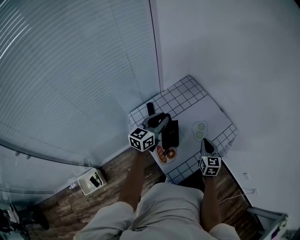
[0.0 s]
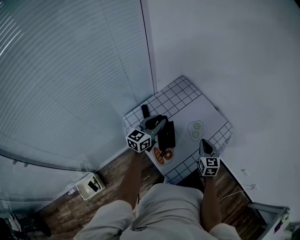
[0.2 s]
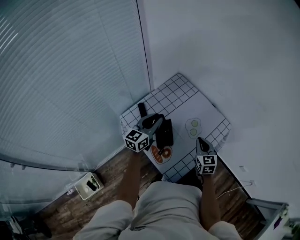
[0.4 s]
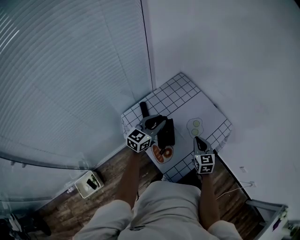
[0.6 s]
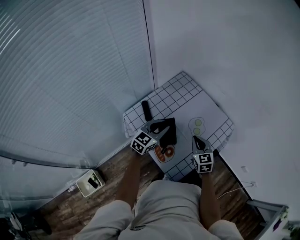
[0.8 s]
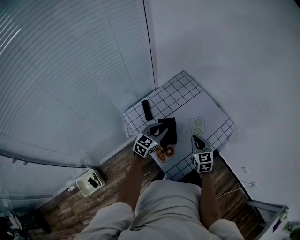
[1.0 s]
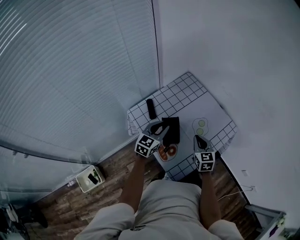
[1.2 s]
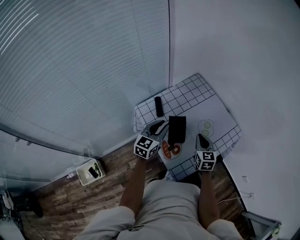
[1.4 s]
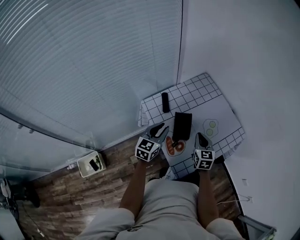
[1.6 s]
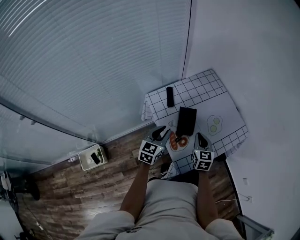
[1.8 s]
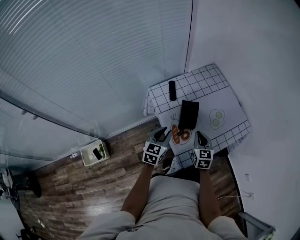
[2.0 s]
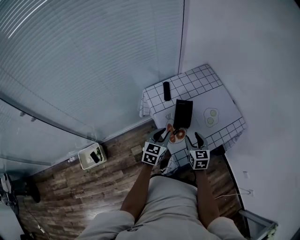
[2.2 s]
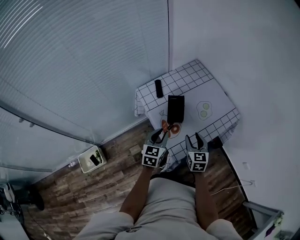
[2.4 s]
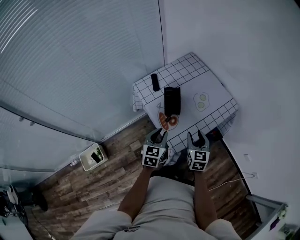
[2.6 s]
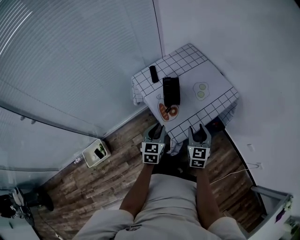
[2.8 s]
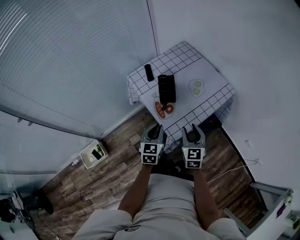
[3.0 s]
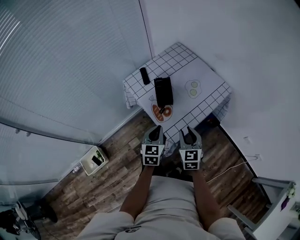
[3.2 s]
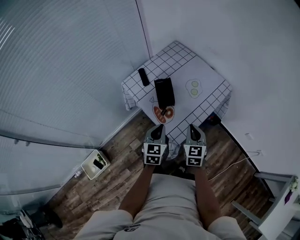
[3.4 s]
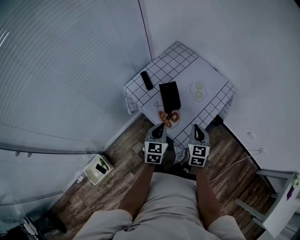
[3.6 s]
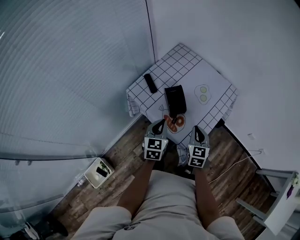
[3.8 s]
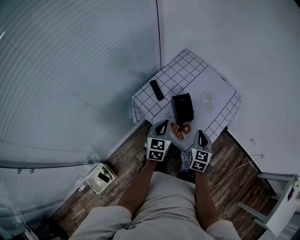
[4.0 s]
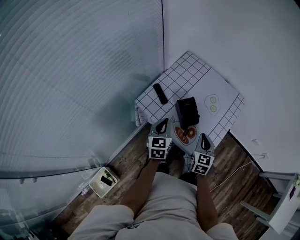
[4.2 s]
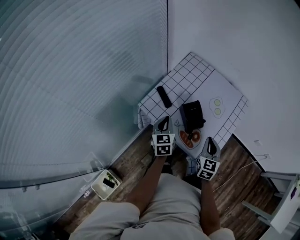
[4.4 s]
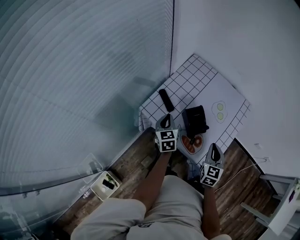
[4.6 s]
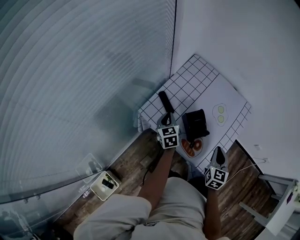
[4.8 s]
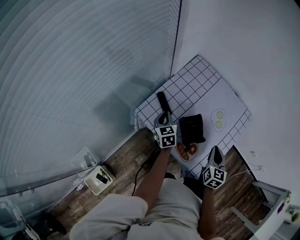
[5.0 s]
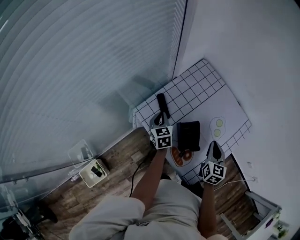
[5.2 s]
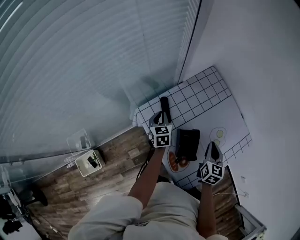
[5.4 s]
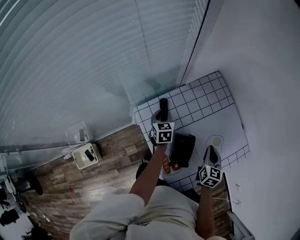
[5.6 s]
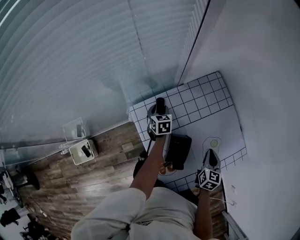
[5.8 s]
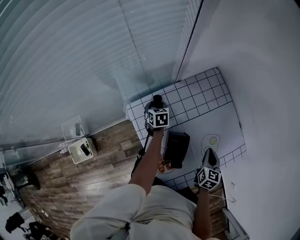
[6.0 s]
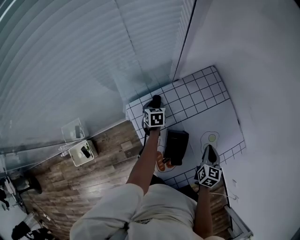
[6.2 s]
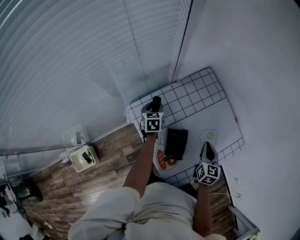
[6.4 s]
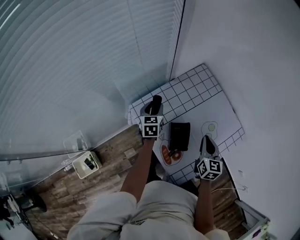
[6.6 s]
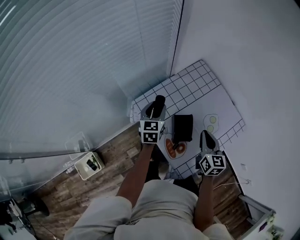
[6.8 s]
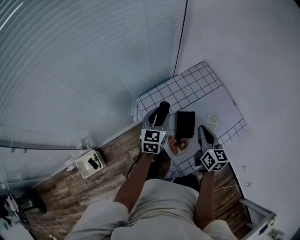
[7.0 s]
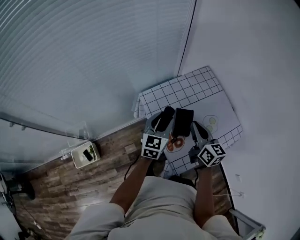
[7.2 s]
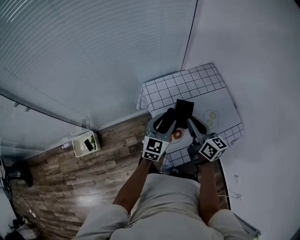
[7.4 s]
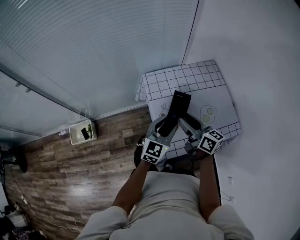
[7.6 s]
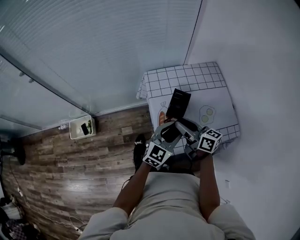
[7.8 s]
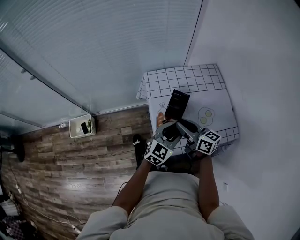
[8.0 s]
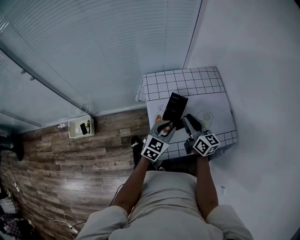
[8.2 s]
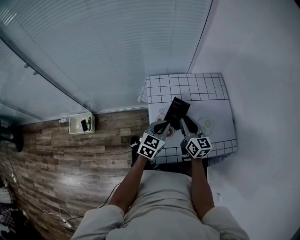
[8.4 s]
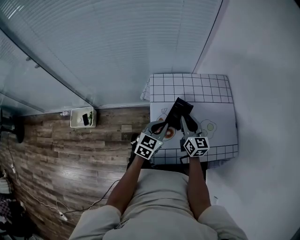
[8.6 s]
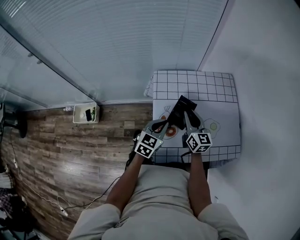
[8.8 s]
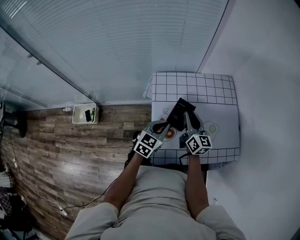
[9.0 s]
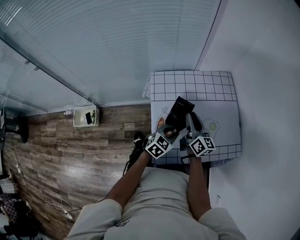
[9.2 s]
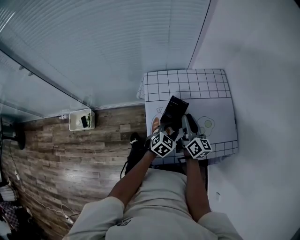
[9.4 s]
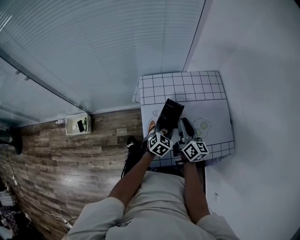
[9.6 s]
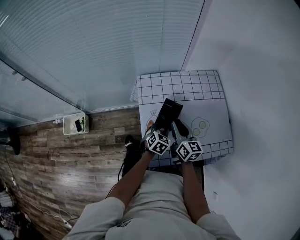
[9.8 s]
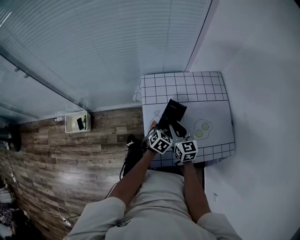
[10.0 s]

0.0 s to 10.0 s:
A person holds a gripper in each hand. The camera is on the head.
0.0 to 1.4 s: The right gripper goes approximately 5 cm to the left; the left gripper moves backward and downward, roughly 10 cm.
1.4 to 2.8 s: The grippers both shift backward by about 20 cm. The right gripper opens its fingers; the left gripper changes its angle by about 20 degrees.
2.8 to 4.2 s: The right gripper goes roughly 15 cm to the left and forward, swivels some 30 degrees, and closes up. Meanwhile the left gripper travels forward and to the left by approximately 25 cm, and closes its fingers.
4.2 to 5.8 s: The right gripper ends up about 25 cm from where it was, and rotates some 20 degrees; the left gripper ends up about 30 cm from where it was, swivels some 40 degrees, and opens up.
5.8 to 7.2 s: The left gripper is displaced backward and upward by roughly 35 cm, and tilts its fingers approximately 30 degrees upward. Meanwhile the right gripper shifts roughly 25 cm upward, to the left and backward, and swivels approximately 40 degrees.
7.2 to 8.6 s: The left gripper goes some 15 cm backward, downward and to the right, and closes up. The right gripper is displaced downward by approximately 10 cm, goes backward and returns, approximately 10 cm each way, swivels approximately 20 degrees, and opens up.
8.6 to 10.0 s: The right gripper moves downward, some 5 cm, while the left gripper shifts about 15 cm downward and to the right, rotates some 20 degrees, and opens its fingers.

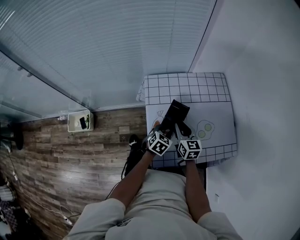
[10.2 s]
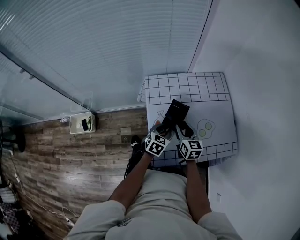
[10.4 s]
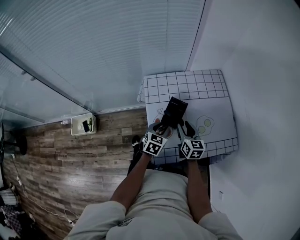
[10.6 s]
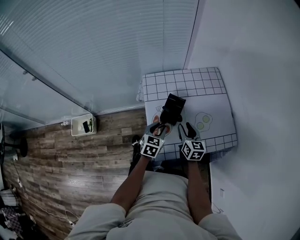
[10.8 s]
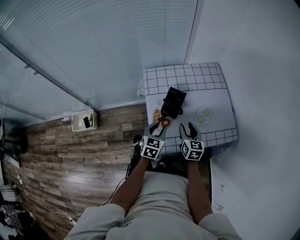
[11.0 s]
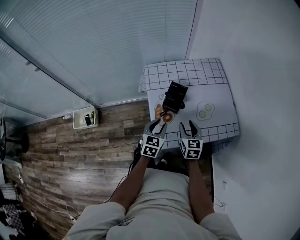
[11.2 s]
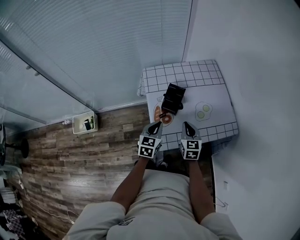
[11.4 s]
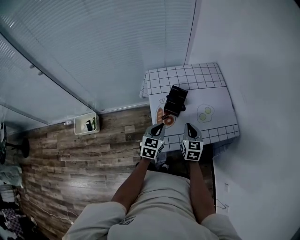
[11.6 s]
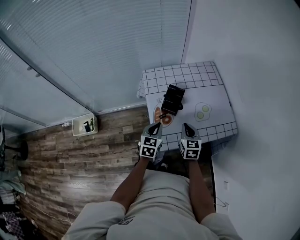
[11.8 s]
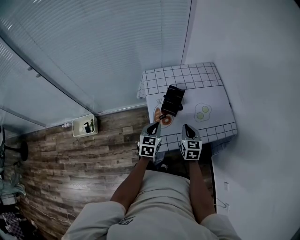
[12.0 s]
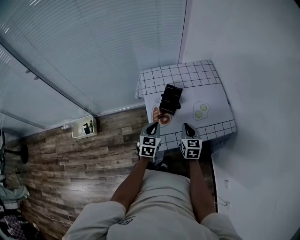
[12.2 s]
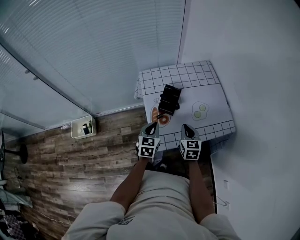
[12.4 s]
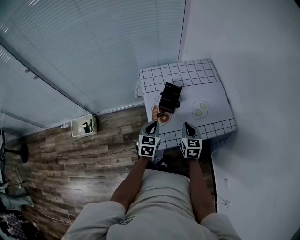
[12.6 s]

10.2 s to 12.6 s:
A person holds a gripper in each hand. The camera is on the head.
10.2 to 11.4 s: The right gripper moves backward and to the right, approximately 15 cm, and closes its fingers, while the left gripper is displaced backward and upward by some 15 cm, swivels about 20 degrees, and closes its fingers.
11.4 to 12.6 s: The grippers move only a little.

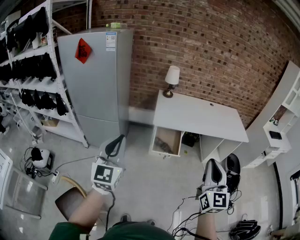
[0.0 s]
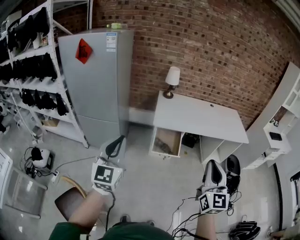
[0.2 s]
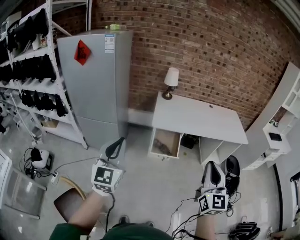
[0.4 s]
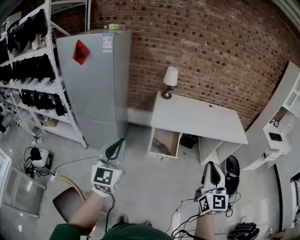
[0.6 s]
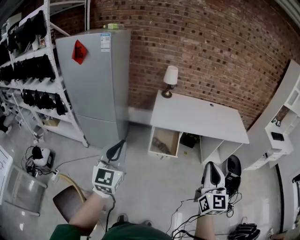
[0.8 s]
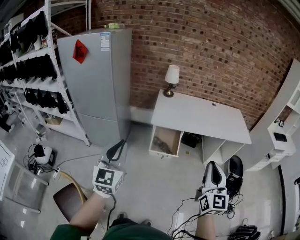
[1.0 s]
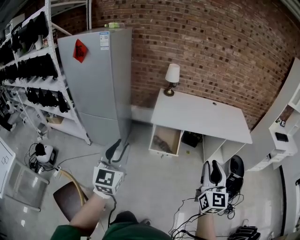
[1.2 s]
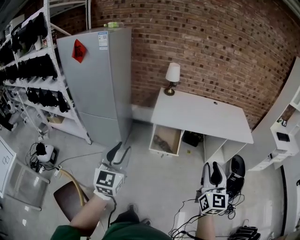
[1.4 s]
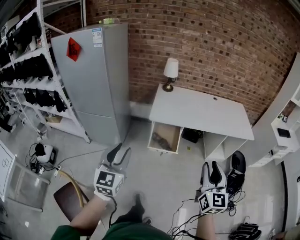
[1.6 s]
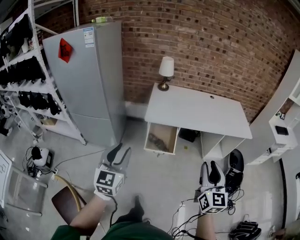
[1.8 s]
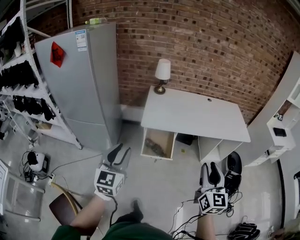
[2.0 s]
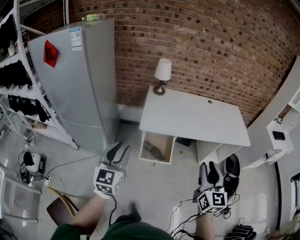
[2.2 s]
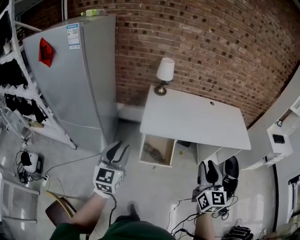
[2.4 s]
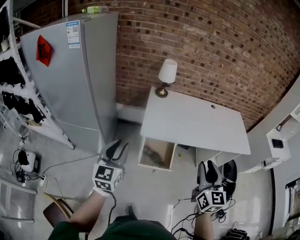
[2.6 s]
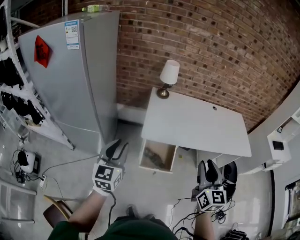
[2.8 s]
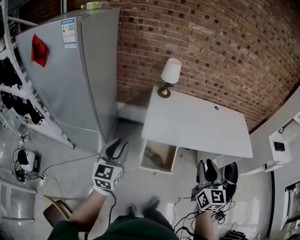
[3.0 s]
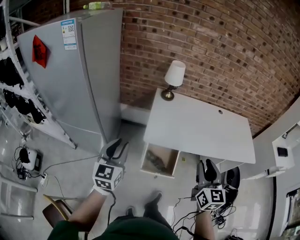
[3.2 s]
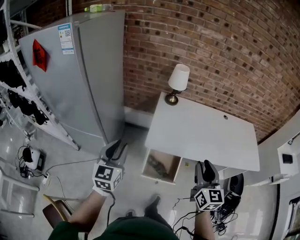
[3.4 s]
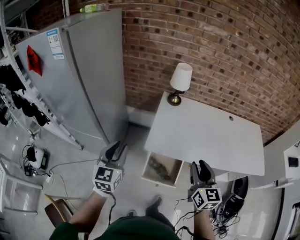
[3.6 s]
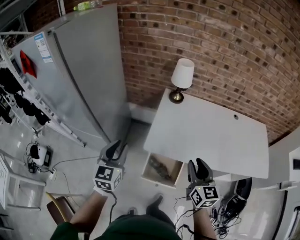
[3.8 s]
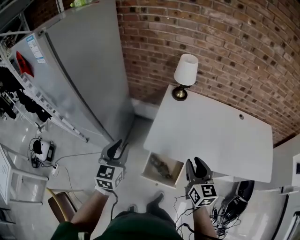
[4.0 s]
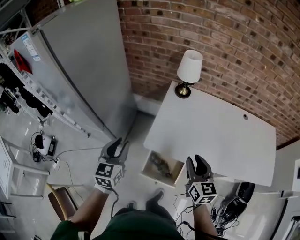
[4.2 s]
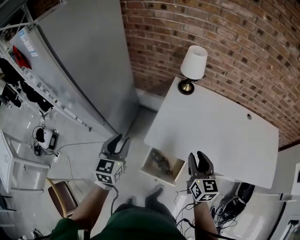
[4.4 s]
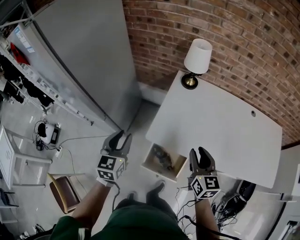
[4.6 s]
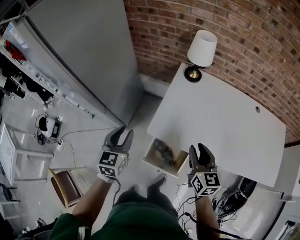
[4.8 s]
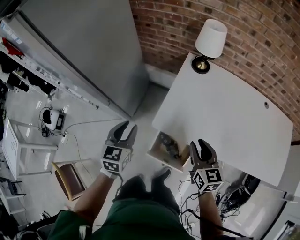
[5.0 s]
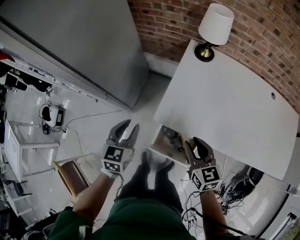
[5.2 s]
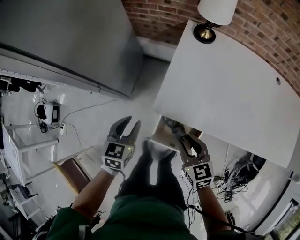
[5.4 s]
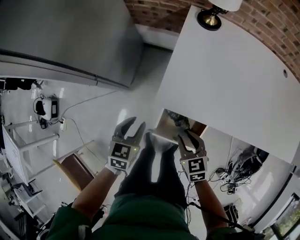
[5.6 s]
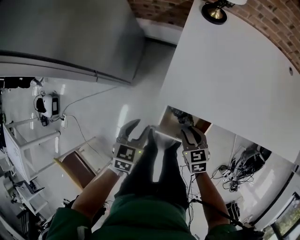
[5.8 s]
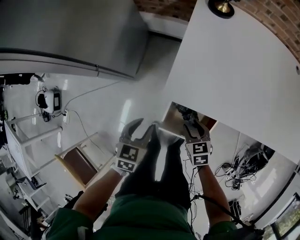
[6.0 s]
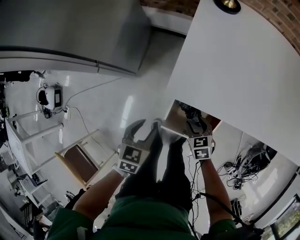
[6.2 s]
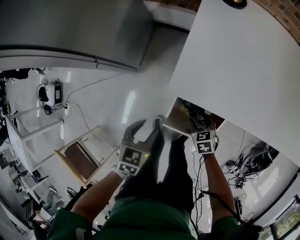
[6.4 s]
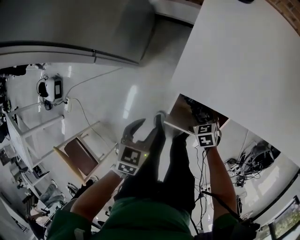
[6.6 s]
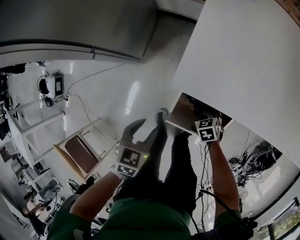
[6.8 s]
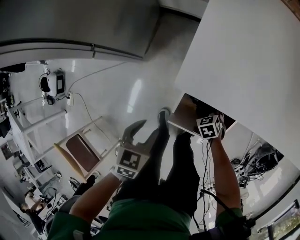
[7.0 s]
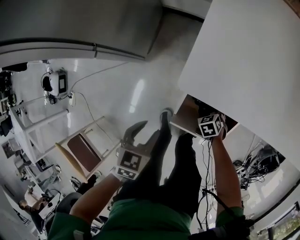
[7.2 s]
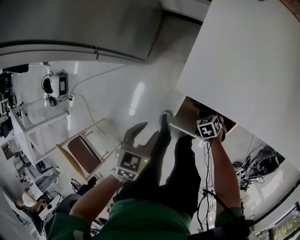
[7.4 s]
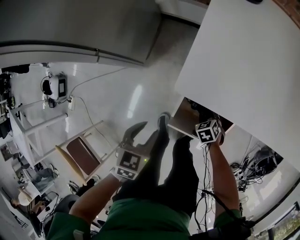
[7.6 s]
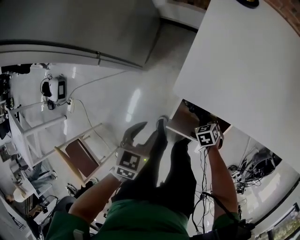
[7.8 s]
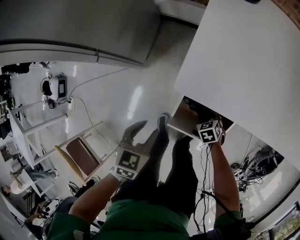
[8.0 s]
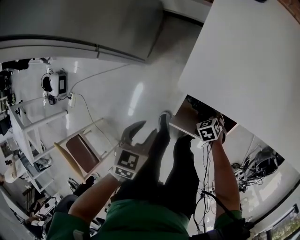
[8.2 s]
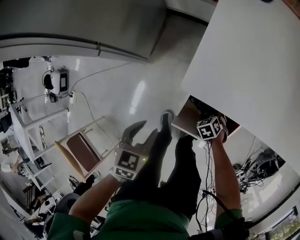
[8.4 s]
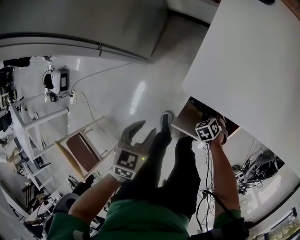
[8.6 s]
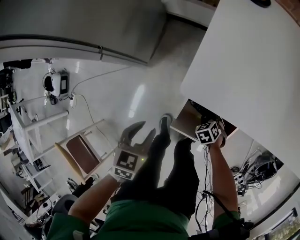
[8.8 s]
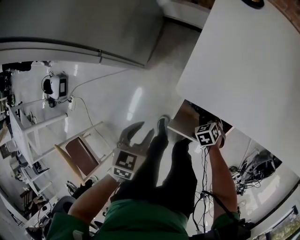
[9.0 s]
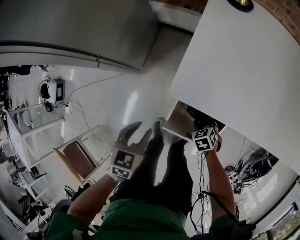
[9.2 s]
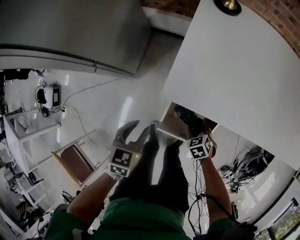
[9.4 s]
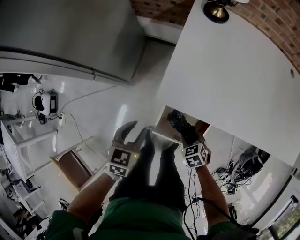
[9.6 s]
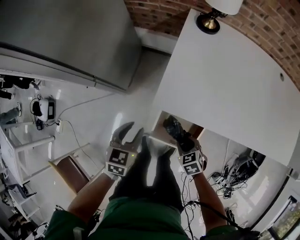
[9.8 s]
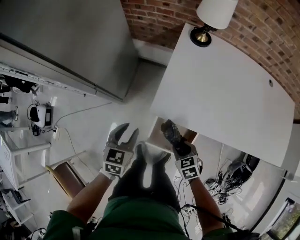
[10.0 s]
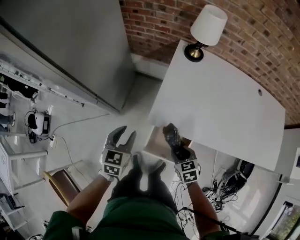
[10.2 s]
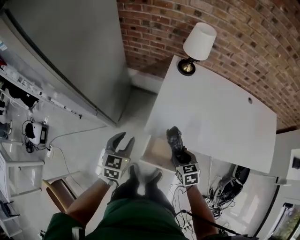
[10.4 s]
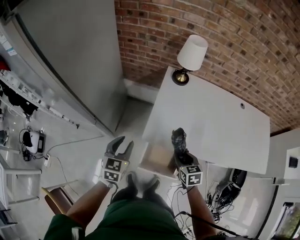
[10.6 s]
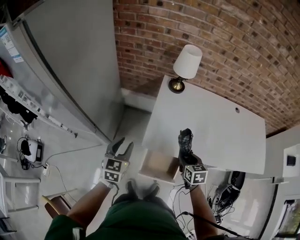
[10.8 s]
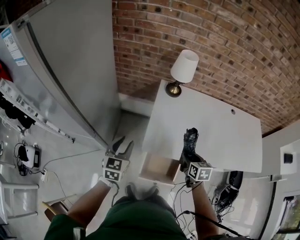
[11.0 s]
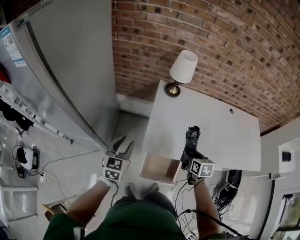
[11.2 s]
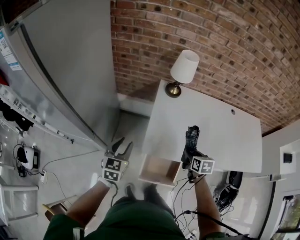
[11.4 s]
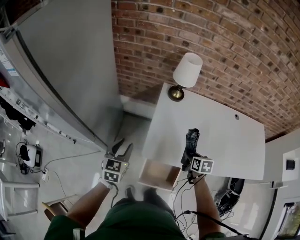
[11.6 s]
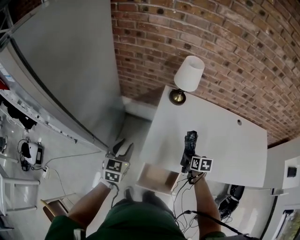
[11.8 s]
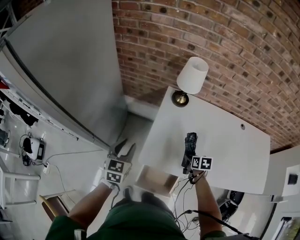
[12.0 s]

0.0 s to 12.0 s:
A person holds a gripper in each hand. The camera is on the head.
0.0 to 1.6 s: The right gripper is displaced to the right, downward and forward by approximately 15 cm, and opens its fingers. The left gripper heads to the right and downward, covering about 15 cm, and opens.
1.6 to 3.0 s: The two grippers go some 35 cm forward.
3.0 to 4.4 s: The left gripper heads forward, downward and to the right, covering about 25 cm, and turns by about 20 degrees. The right gripper moves forward and downward, some 30 cm, and rotates roughly 30 degrees.
4.4 to 6.0 s: The two grippers go some 35 cm downward. The right gripper tips its fingers downward by about 30 degrees. Meanwhile the left gripper turns by about 30 degrees.
6.0 to 7.6 s: The right gripper goes roughly 20 cm downward, turns by some 30 degrees, and opens, then closes once more; the left gripper heads downward, covering about 5 cm.
7.6 to 9.0 s: The right gripper opens and closes again.
9.0 to 10.4 s: The left gripper goes approximately 25 cm upward, and turns by about 20 degrees; the right gripper travels upward by roughly 40 cm, and rotates approximately 30 degrees.
10.4 to 12.0 s: The left gripper moves forward and upward, about 15 cm, while the right gripper shifts roughly 20 cm forward and to the right, and rotates about 30 degrees.
